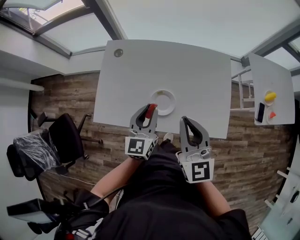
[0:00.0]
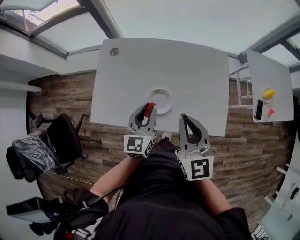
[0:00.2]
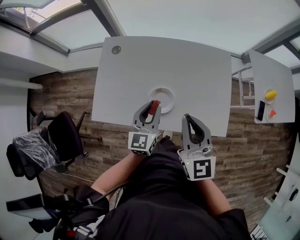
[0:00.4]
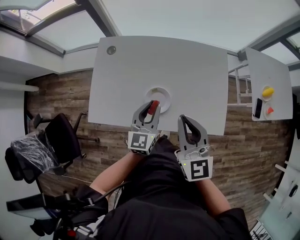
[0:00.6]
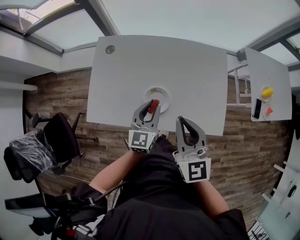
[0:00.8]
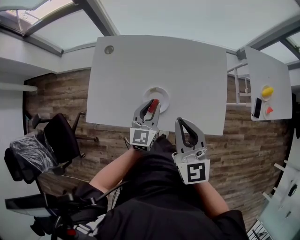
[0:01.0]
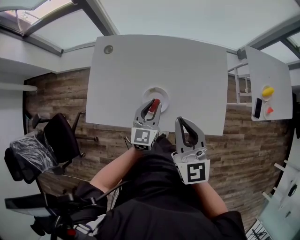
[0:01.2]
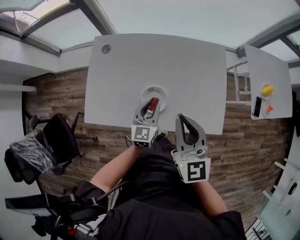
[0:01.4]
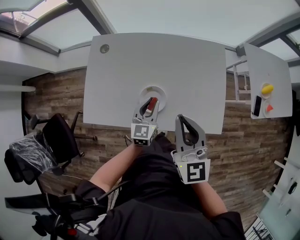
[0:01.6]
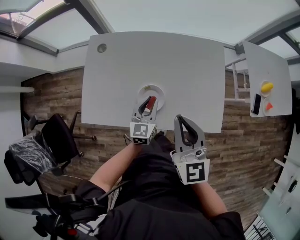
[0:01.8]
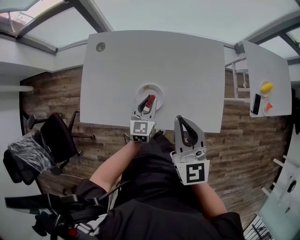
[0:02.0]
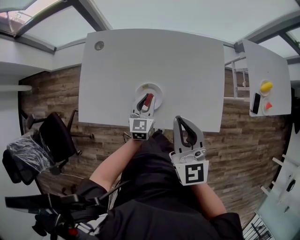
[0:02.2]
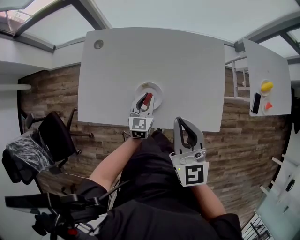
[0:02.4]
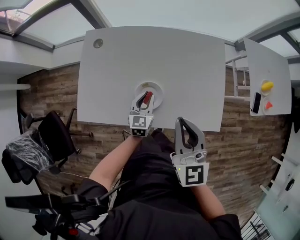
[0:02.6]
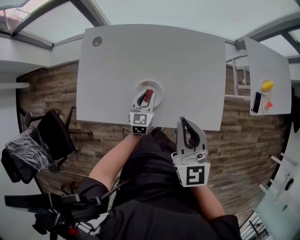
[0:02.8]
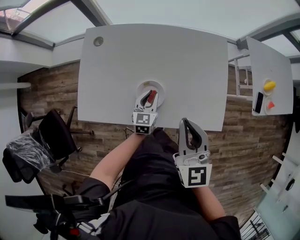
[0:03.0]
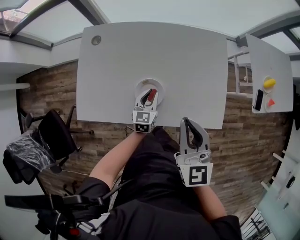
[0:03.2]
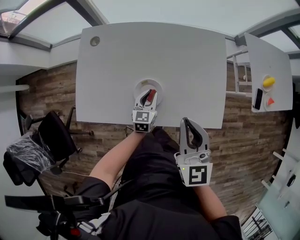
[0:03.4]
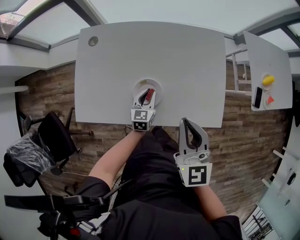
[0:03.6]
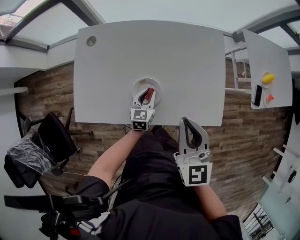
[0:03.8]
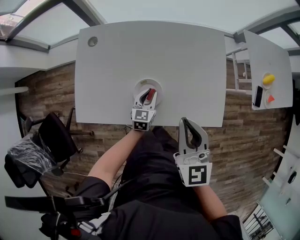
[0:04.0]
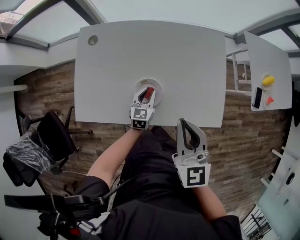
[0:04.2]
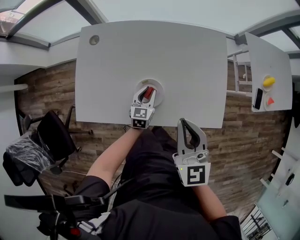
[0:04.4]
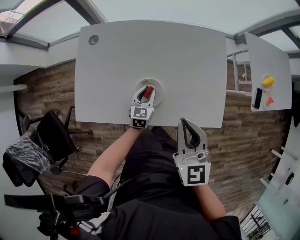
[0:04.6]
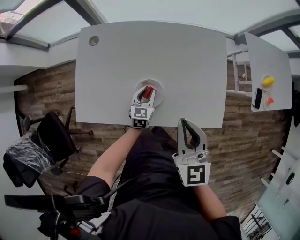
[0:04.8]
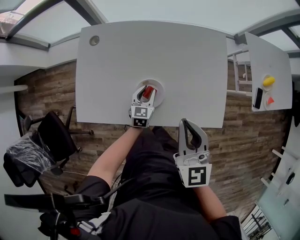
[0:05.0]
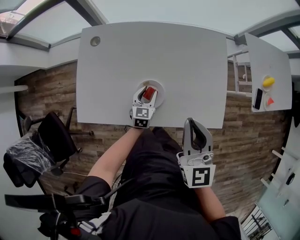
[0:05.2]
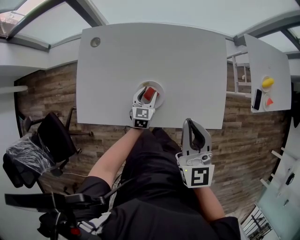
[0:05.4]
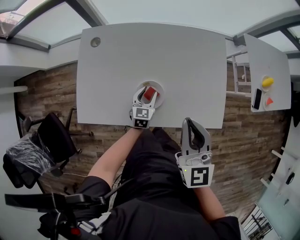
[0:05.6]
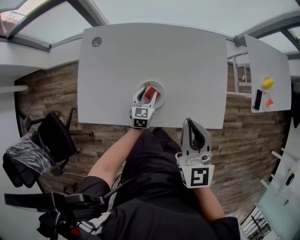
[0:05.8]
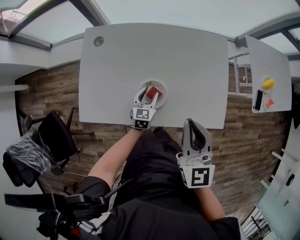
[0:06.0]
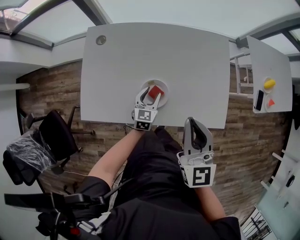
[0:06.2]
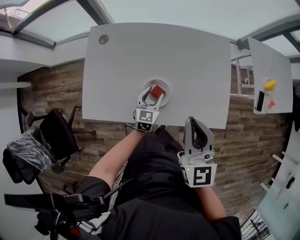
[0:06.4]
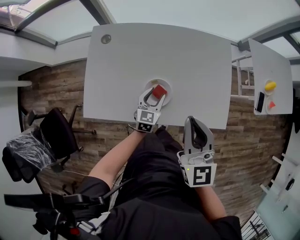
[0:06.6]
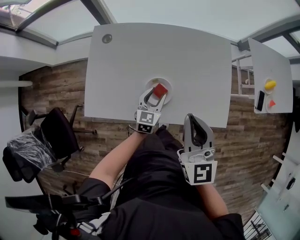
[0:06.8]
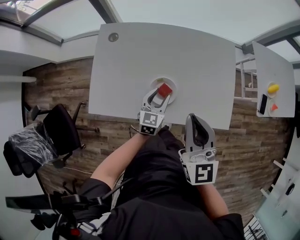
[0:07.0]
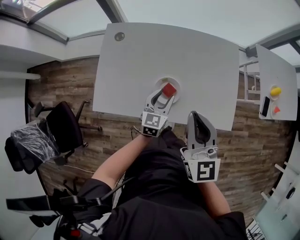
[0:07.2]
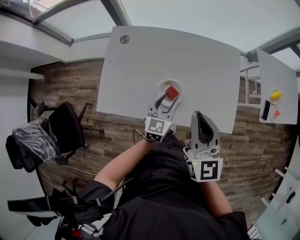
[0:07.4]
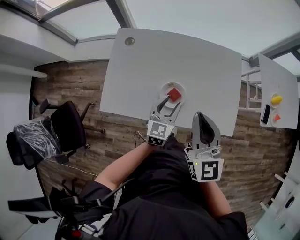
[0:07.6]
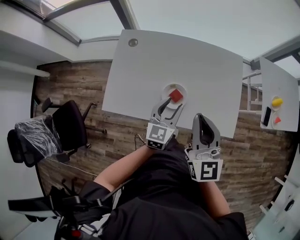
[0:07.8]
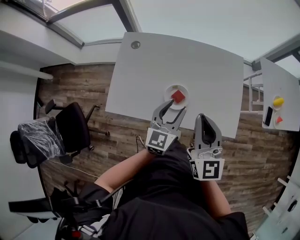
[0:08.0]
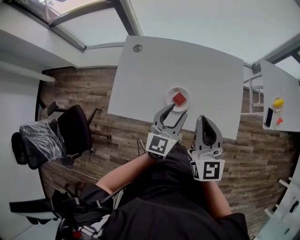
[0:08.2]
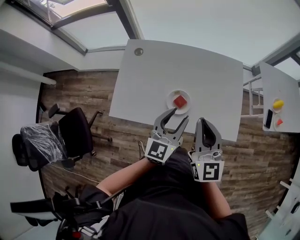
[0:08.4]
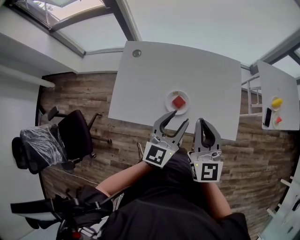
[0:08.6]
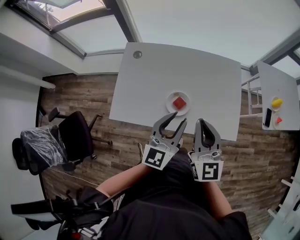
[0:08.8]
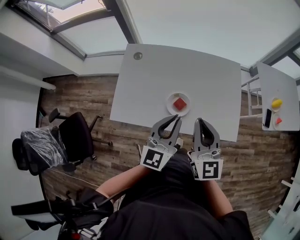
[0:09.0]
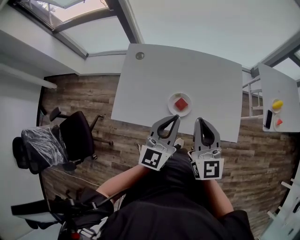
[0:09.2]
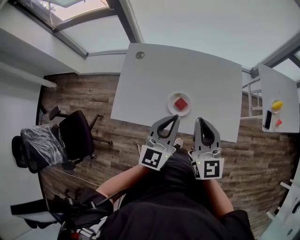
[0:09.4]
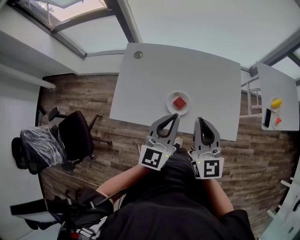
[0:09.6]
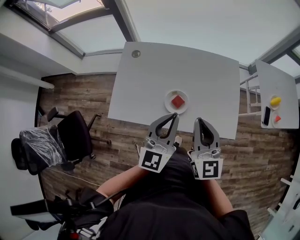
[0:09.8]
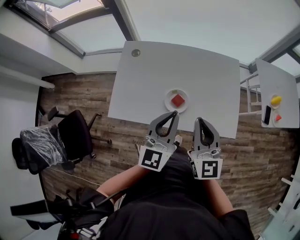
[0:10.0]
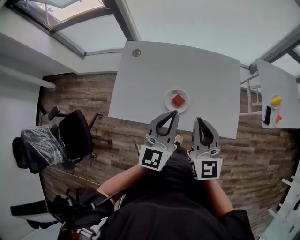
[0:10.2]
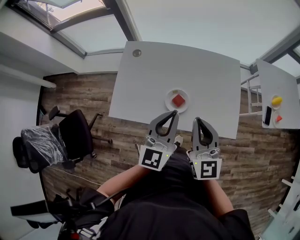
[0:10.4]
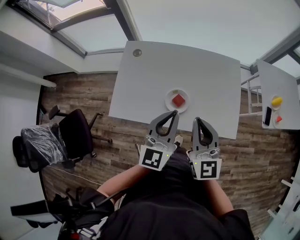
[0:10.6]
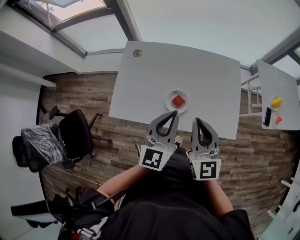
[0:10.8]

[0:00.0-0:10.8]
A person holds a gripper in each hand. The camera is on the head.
0.0 to 1.6 s: The left gripper moves downward and to the right, approximately 10 cm.
1.6 to 3.0 s: The left gripper travels downward by roughly 10 cm.
3.0 to 4.6 s: There are only small adjustments of the grippers.
4.6 to 6.2 s: The left gripper opens its fingers.
6.2 to 7.8 s: The right gripper changes place by roughly 5 cm. Meanwhile the left gripper goes some 20 cm upward.
7.8 to 9.2 s: The left gripper shifts about 15 cm upward and backward, and closes up.
9.2 to 10.8 s: The grippers make only small movements.

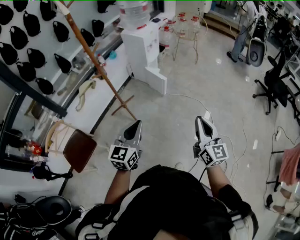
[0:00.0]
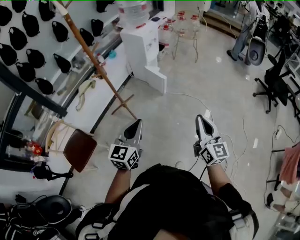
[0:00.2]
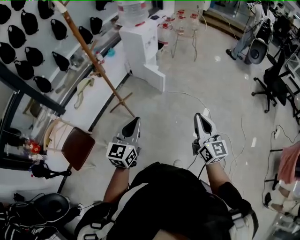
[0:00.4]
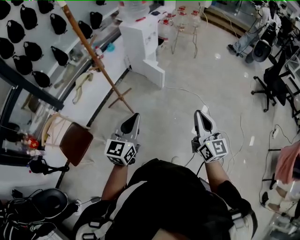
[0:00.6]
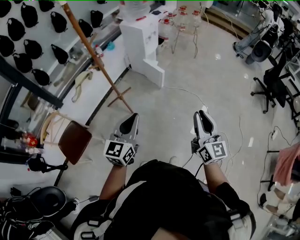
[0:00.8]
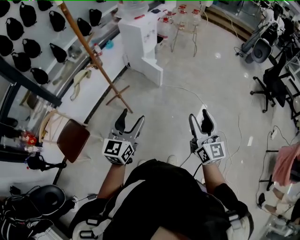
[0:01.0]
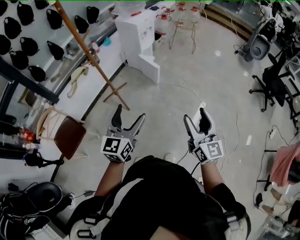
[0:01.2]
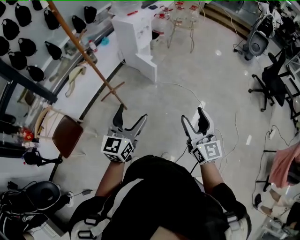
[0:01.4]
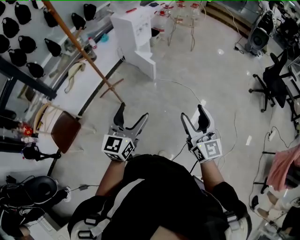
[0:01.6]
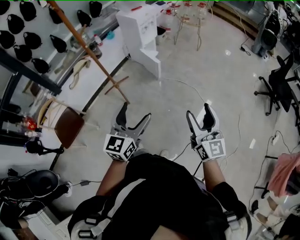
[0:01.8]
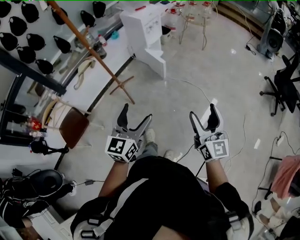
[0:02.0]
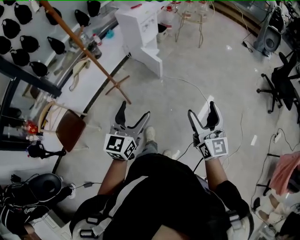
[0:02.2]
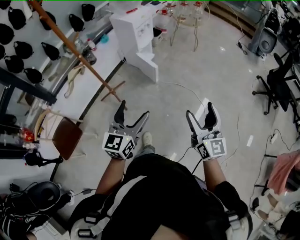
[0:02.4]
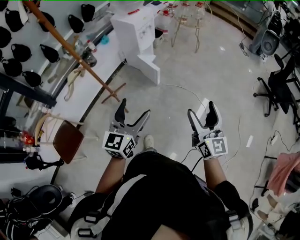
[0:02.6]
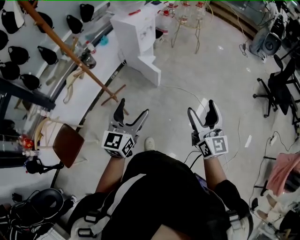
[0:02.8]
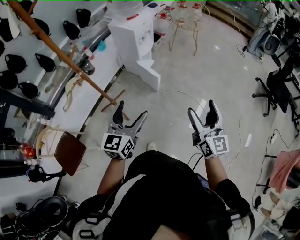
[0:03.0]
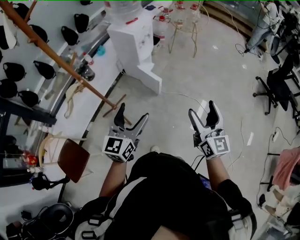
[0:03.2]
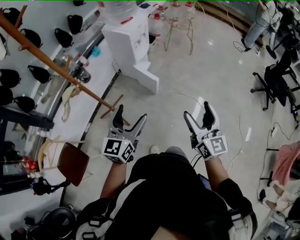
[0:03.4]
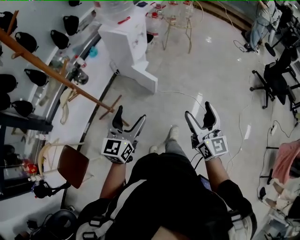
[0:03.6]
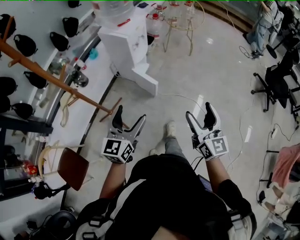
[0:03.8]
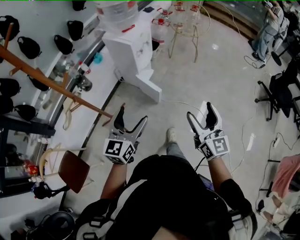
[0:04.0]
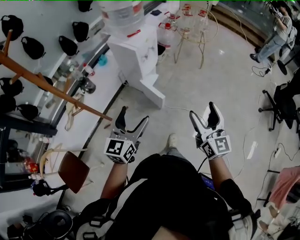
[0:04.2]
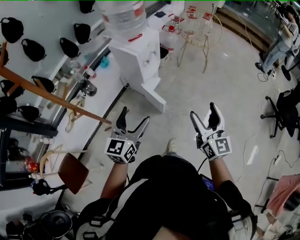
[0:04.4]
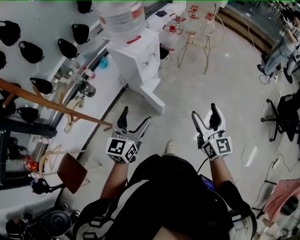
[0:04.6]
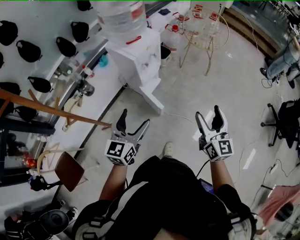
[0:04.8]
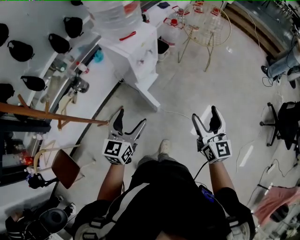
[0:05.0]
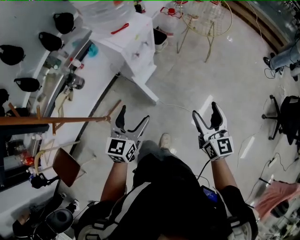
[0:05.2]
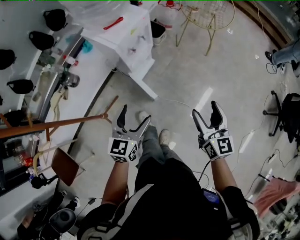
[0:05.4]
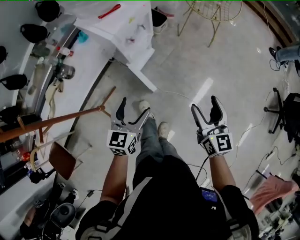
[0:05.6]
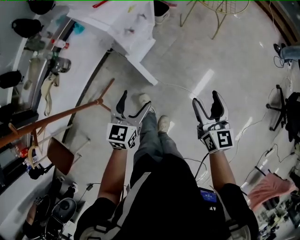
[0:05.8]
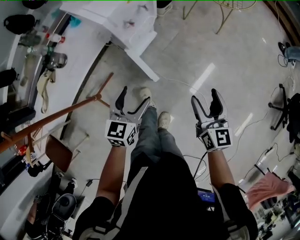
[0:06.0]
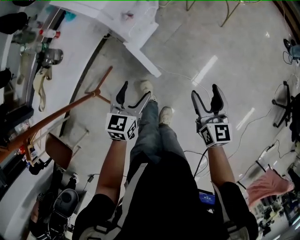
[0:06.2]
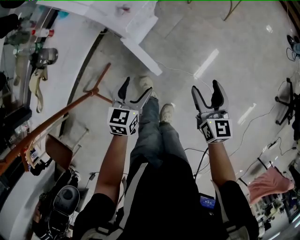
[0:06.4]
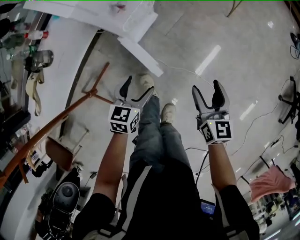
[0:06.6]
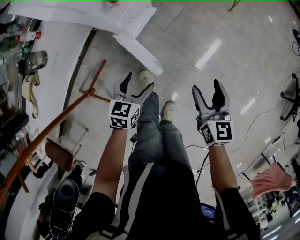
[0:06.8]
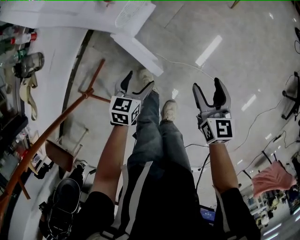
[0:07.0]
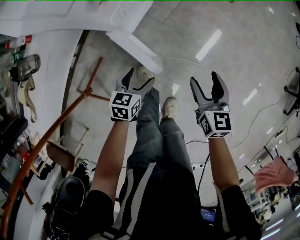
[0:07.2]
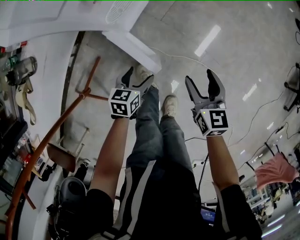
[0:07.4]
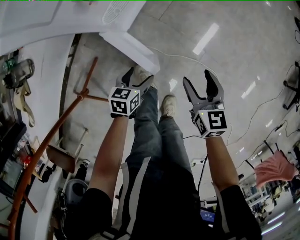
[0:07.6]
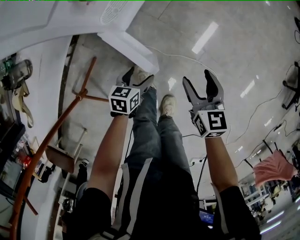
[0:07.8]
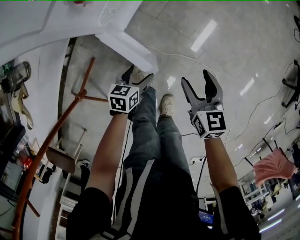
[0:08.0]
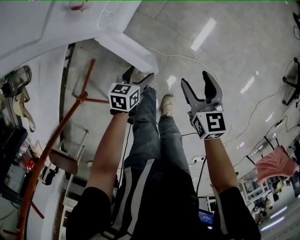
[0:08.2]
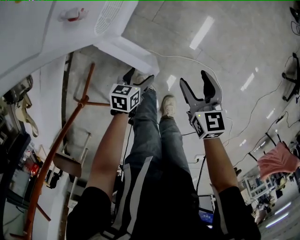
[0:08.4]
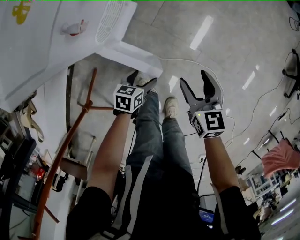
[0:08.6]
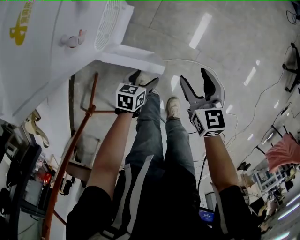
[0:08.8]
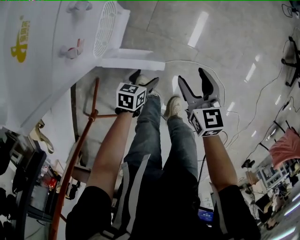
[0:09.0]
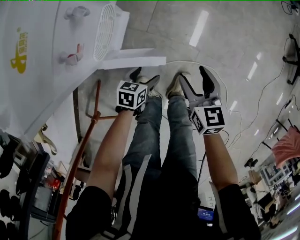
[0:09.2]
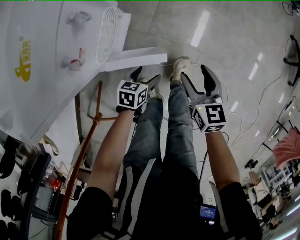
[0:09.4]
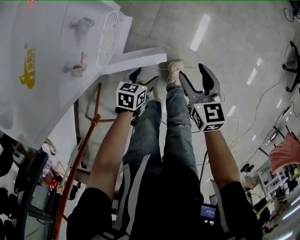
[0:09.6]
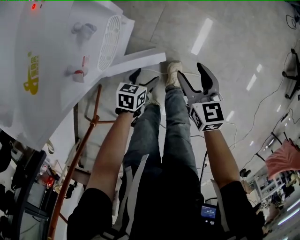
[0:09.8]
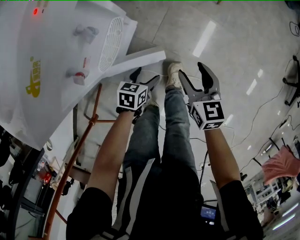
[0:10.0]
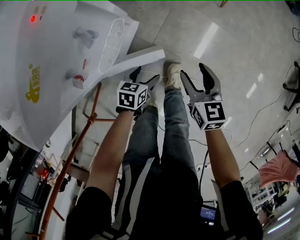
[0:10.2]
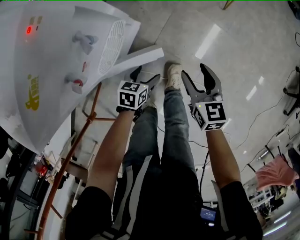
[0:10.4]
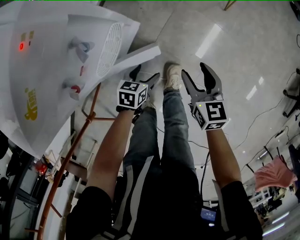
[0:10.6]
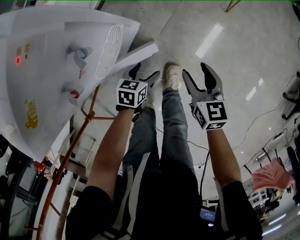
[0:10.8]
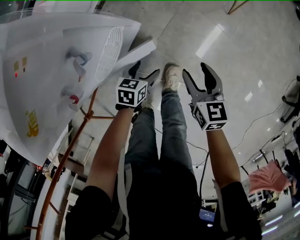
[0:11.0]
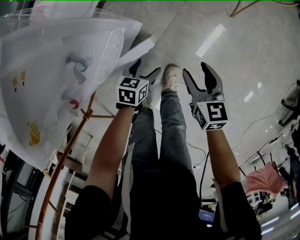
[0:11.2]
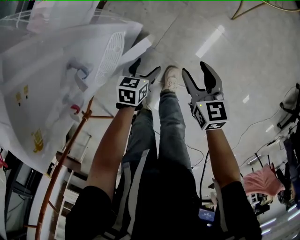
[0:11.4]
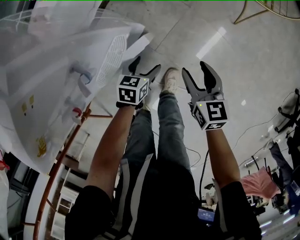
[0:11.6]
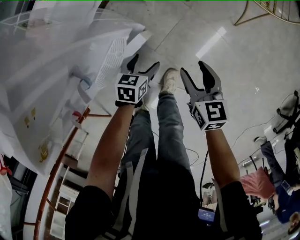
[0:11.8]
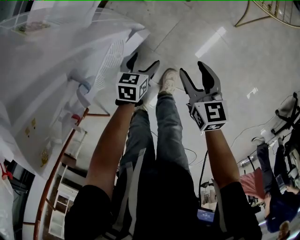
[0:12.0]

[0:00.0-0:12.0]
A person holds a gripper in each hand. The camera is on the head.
0.0 to 1.6 s: The two grippers go some 10 cm to the right. The left gripper opens. Meanwhile the right gripper opens.
1.6 to 3.0 s: The right gripper travels forward by about 20 cm. The left gripper travels forward and to the left by some 25 cm.
3.0 to 4.4 s: Both grippers travel together forward, about 25 cm.
4.4 to 6.0 s: The grippers both shift downward and forward by some 35 cm. The right gripper turns by about 20 degrees, while the left gripper changes its angle by roughly 20 degrees.
6.0 to 7.6 s: Both grippers move downward, about 30 cm. The left gripper turns by roughly 30 degrees.
7.6 to 9.0 s: Both grippers travel together forward, about 5 cm.
9.0 to 10.4 s: The two grippers go approximately 15 cm forward.
10.4 to 12.0 s: Both grippers move forward, some 15 cm.

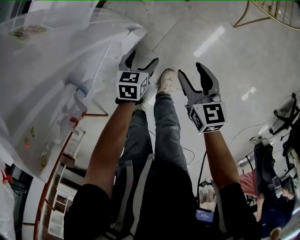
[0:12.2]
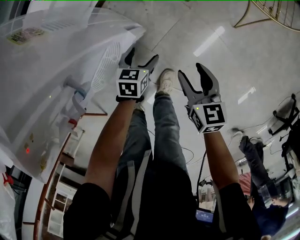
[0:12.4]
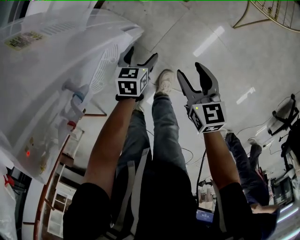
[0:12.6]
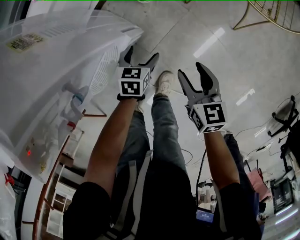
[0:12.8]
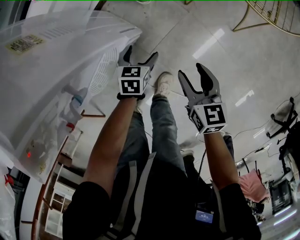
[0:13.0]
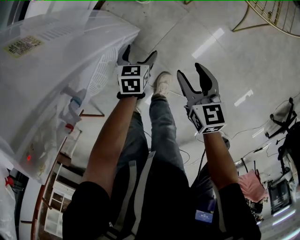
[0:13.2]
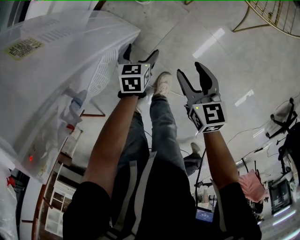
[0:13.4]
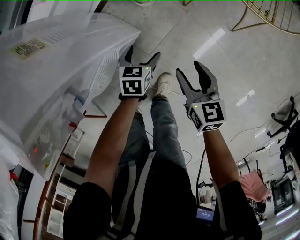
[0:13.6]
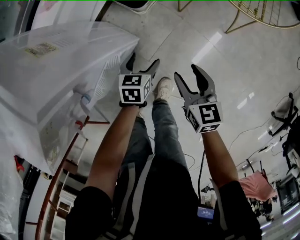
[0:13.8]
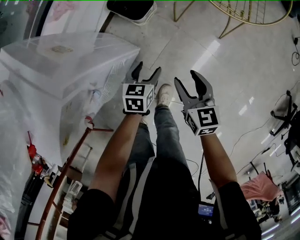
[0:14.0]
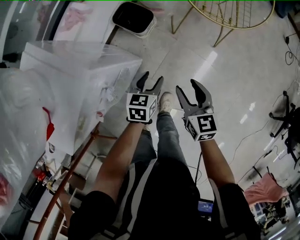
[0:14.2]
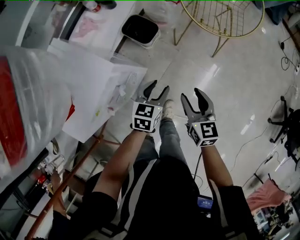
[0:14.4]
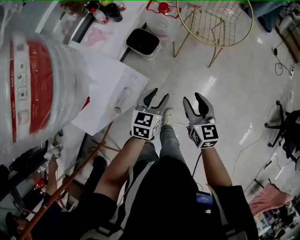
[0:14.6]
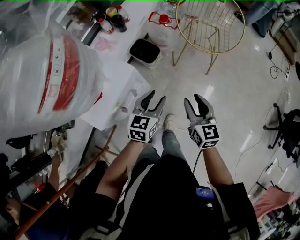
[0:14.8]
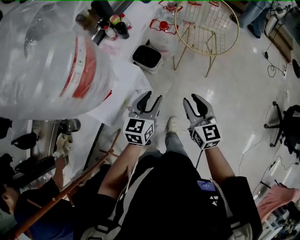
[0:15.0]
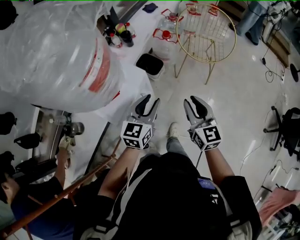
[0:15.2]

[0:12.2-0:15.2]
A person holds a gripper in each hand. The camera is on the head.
12.2 to 13.8 s: The left gripper goes roughly 5 cm forward. The right gripper shifts by approximately 5 cm.
13.8 to 15.2 s: Both grippers move upward, some 50 cm. The left gripper angles its fingers upward, by about 40 degrees, and closes up, while the right gripper swivels approximately 30 degrees.
